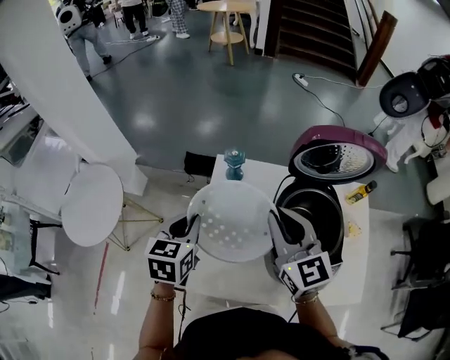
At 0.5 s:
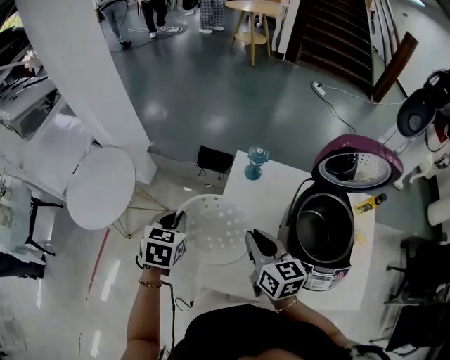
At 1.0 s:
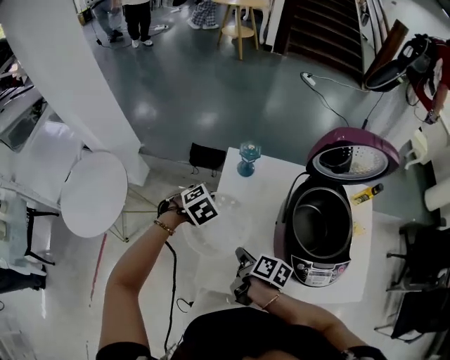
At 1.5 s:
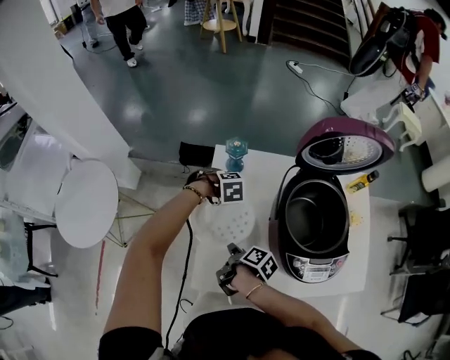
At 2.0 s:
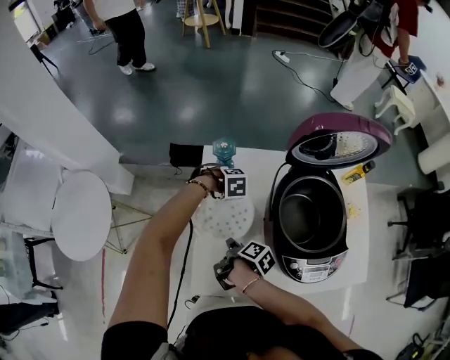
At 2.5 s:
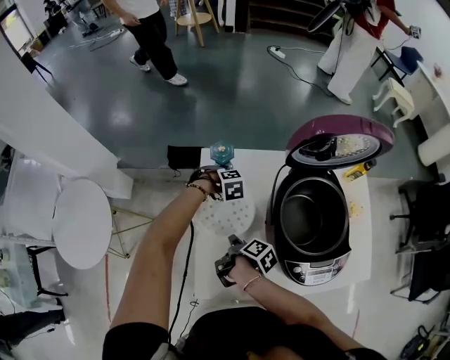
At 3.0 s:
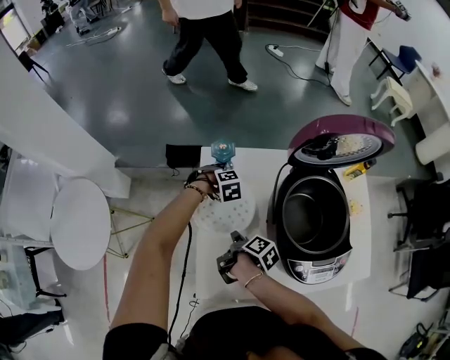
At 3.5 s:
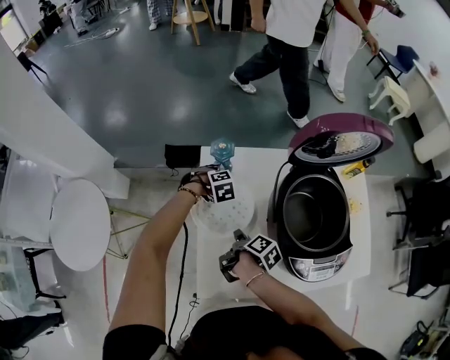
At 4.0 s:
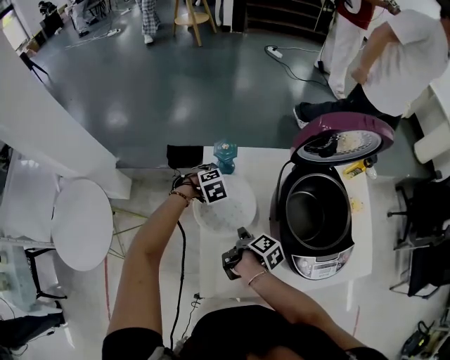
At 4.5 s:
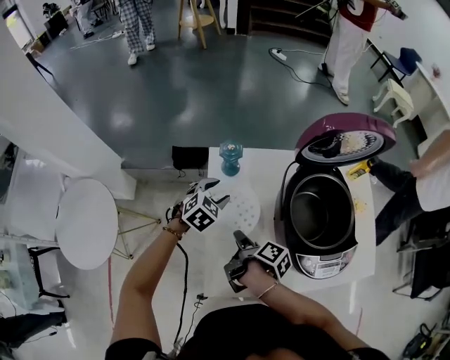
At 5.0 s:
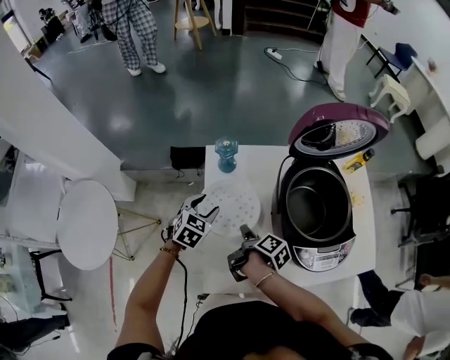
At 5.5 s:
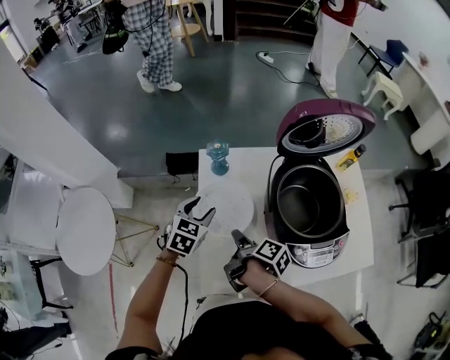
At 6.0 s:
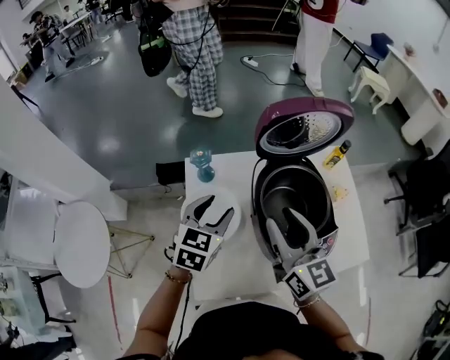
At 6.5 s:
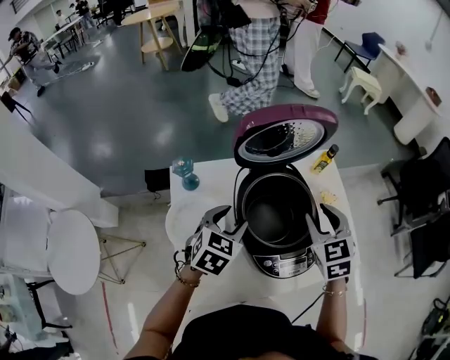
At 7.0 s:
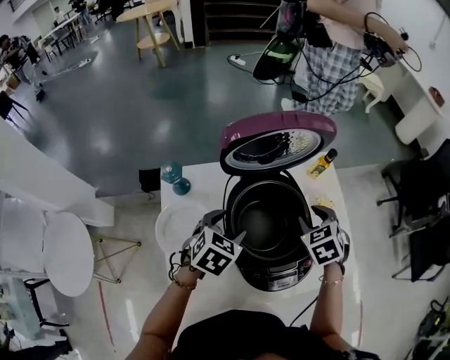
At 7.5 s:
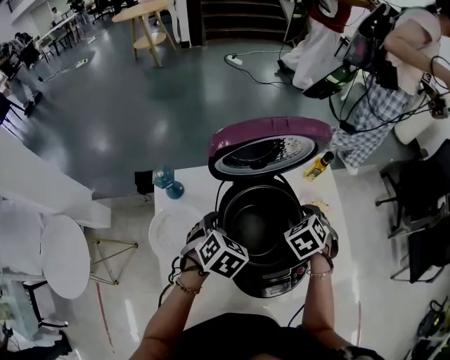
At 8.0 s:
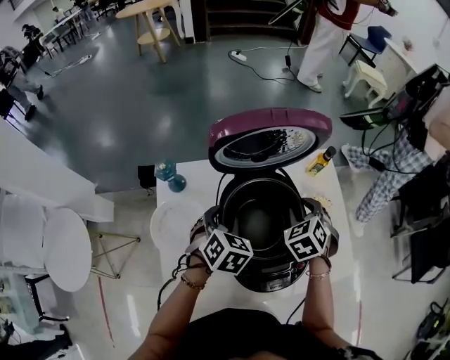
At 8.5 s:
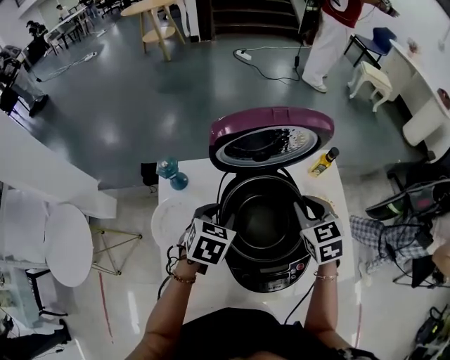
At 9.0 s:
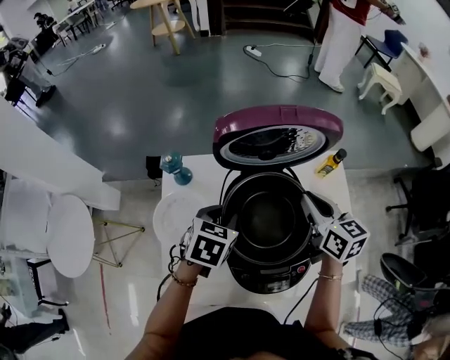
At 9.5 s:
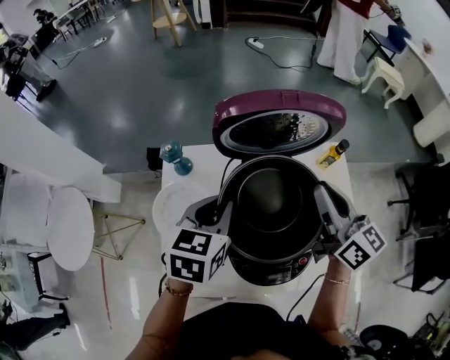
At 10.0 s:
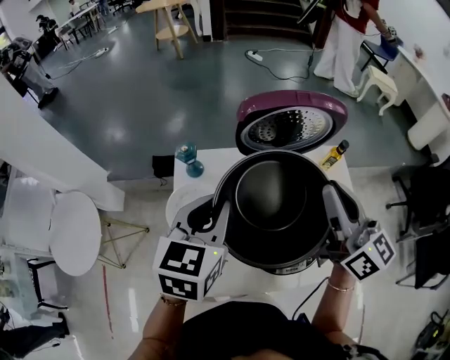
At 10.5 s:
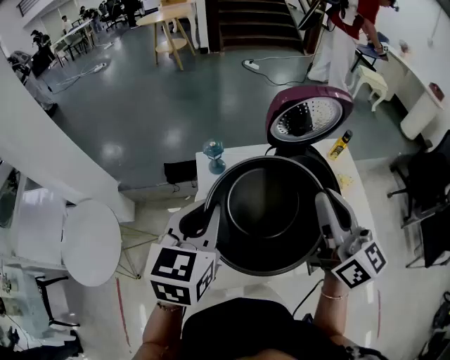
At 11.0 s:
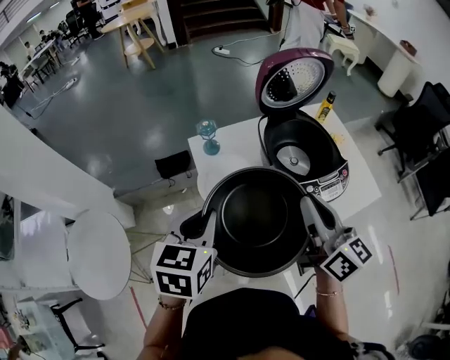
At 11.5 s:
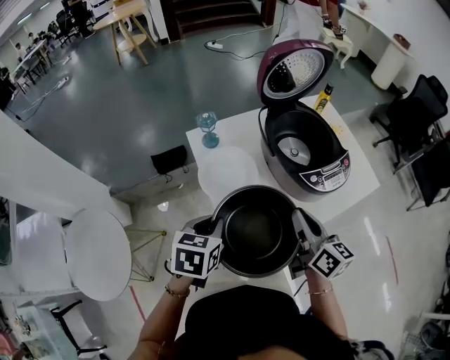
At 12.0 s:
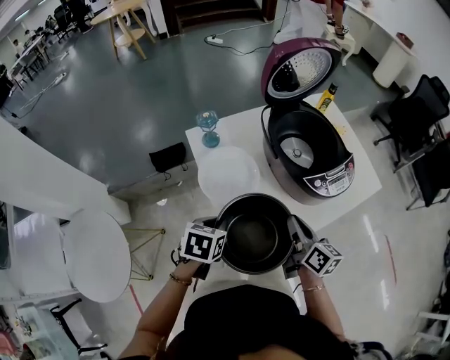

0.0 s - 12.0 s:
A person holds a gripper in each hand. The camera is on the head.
0.0 s - 2.0 s: Both grippers travel together downward, approximately 25 cm. The right gripper rolls clockwise, seen from behind, by approximately 100 degrees. Meanwhile the left gripper rotates around the line of its fingers by some 70 degrees, clockwise from behind.
2.0 s - 4.0 s: The left gripper ends up about 5 cm from where it was, and opens.
4.0 s - 6.0 s: The right gripper moves up and down over some 30 cm, changing direction 2 times, and rotates around the line of its fingers by about 70 degrees, counterclockwise from behind; the left gripper goes approximately 25 cm upward and backward, and tilts its fingers roughly 40 degrees upward.
6.0 s - 8.0 s: The left gripper moves to the right, forward and downward, some 15 cm, and turns by some 30 degrees. The right gripper moves to the right, downward and forward, roughly 30 cm, and angles its fingers downward, by approximately 50 degrees.
8.0 s - 10.0 s: The two grippers go some 20 cm upward. The right gripper angles its fingers upward, by roughly 60 degrees; the left gripper turns by about 40 degrees.
10.0 s - 12.0 s: The grippers both shift downward by roughly 25 cm. The left gripper rotates about 40 degrees, while the right gripper turns by roughly 40 degrees.

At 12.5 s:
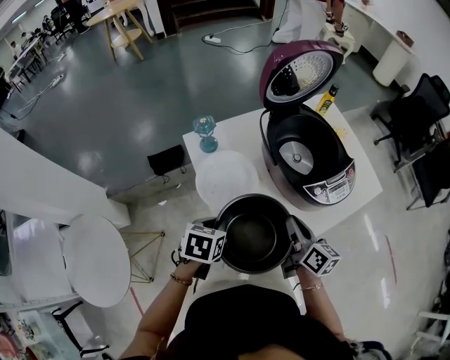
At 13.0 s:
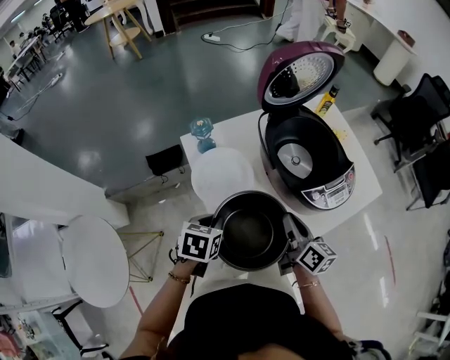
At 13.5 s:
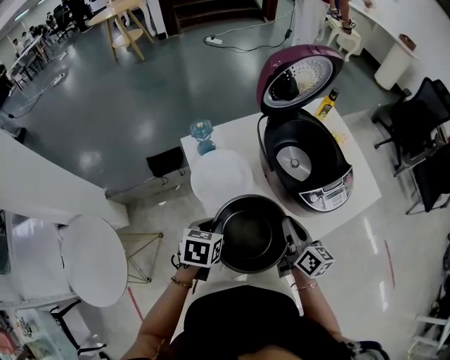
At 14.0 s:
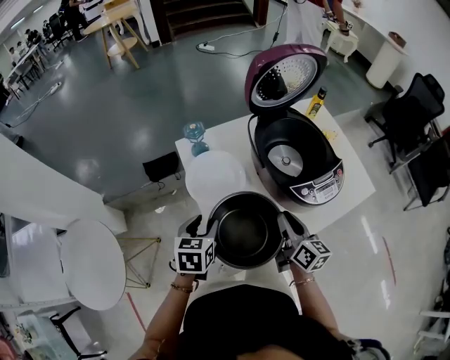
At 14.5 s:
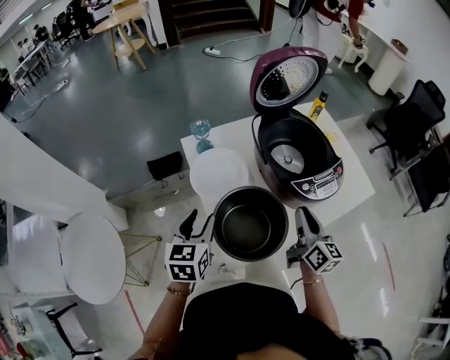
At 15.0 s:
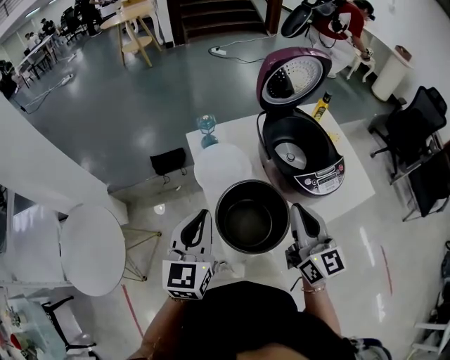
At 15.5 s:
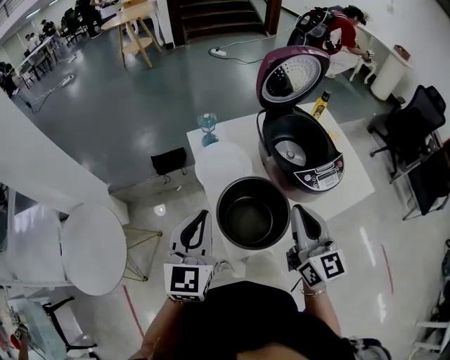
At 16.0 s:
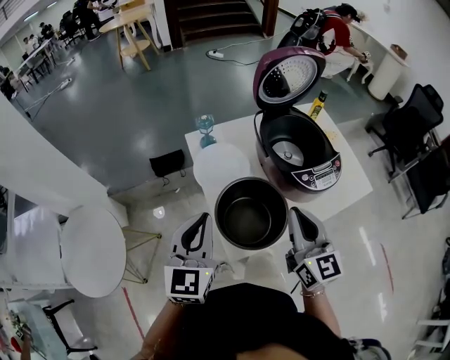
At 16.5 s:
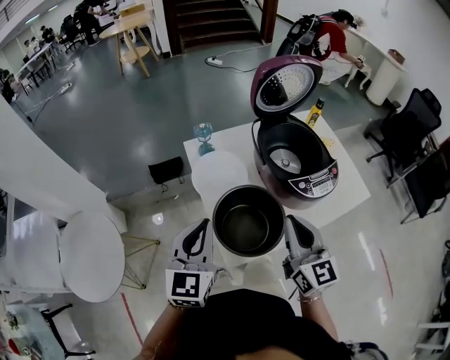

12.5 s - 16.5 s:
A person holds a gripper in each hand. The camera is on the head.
12.5 s - 14.5 s: The right gripper goes about 5 cm to the right; the left gripper is displaced upward by roughly 10 cm, and turns by about 30 degrees.
14.5 s - 16.5 s: The left gripper travels upward and backward by some 10 cm, rotates approximately 20 degrees, and closes. The right gripper is displaced upward, to the left and backward by approximately 15 cm, and swivels approximately 30 degrees.

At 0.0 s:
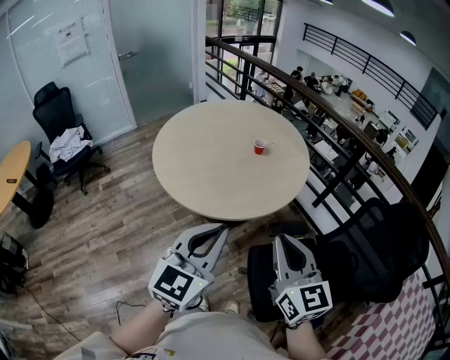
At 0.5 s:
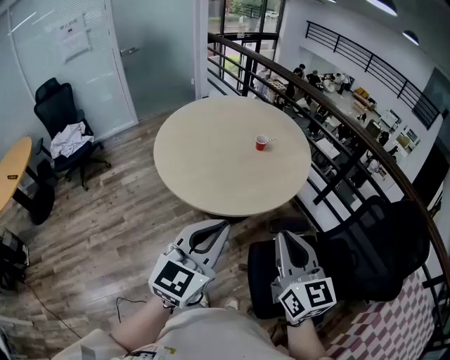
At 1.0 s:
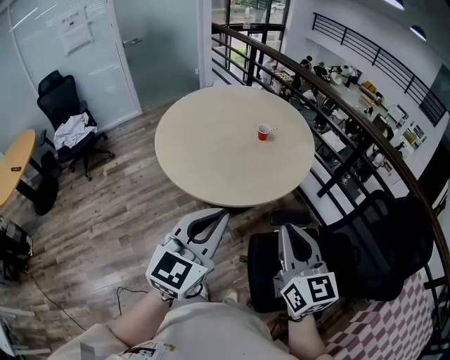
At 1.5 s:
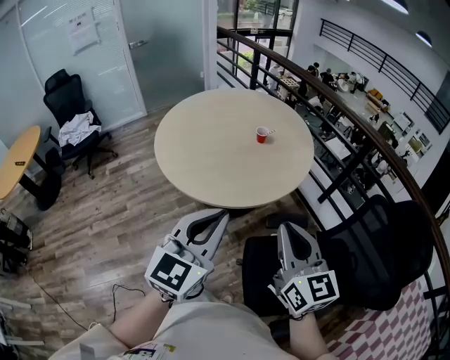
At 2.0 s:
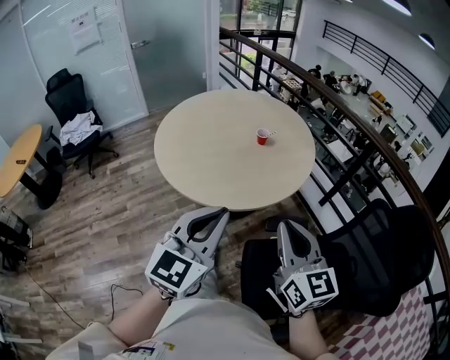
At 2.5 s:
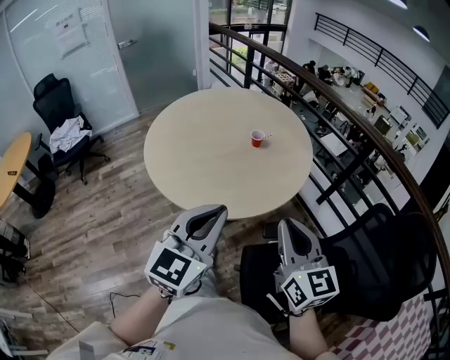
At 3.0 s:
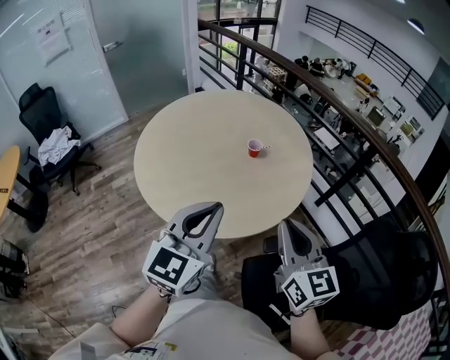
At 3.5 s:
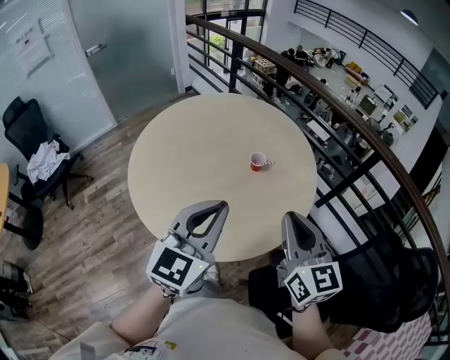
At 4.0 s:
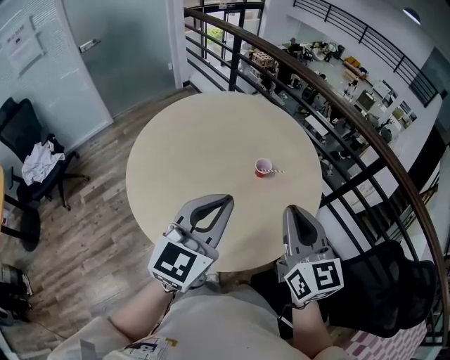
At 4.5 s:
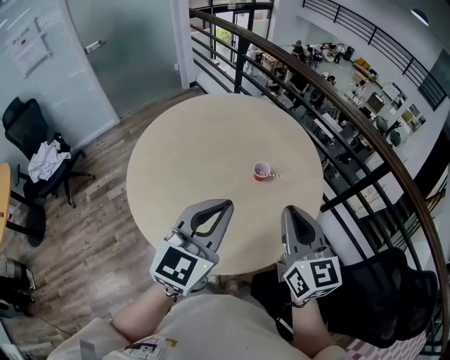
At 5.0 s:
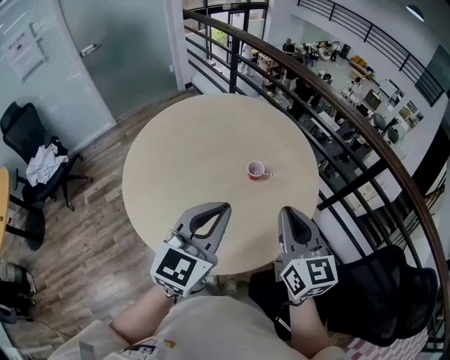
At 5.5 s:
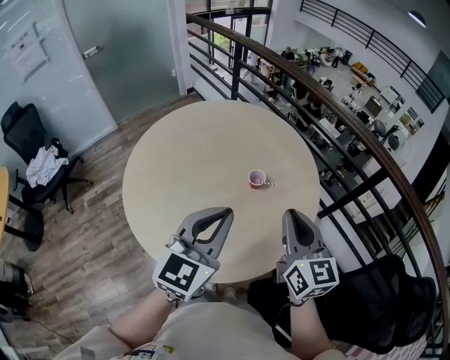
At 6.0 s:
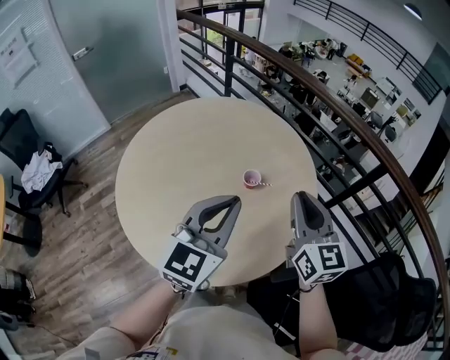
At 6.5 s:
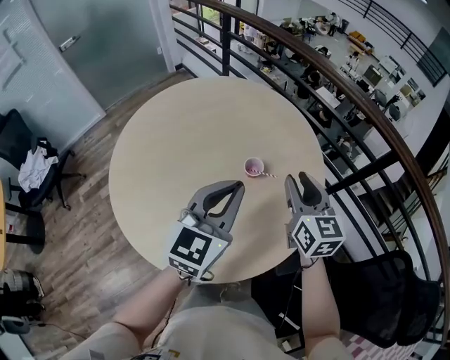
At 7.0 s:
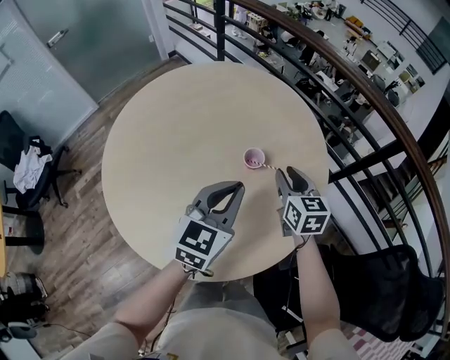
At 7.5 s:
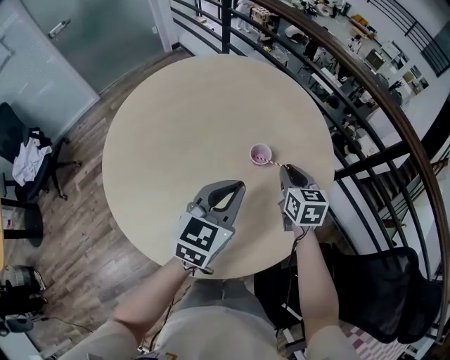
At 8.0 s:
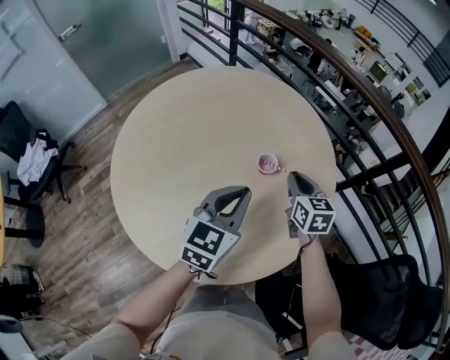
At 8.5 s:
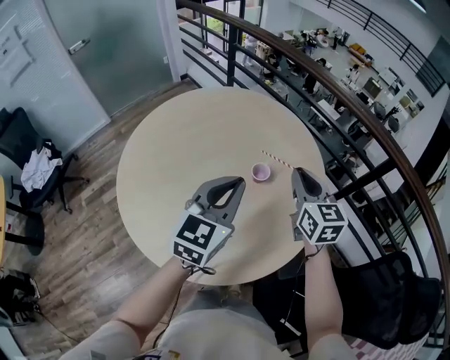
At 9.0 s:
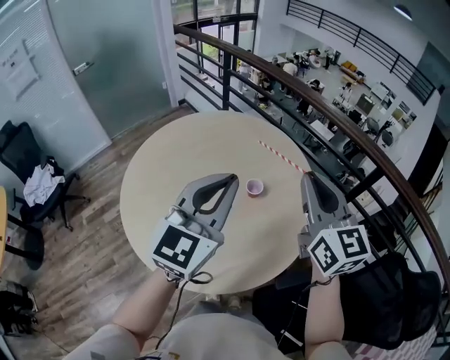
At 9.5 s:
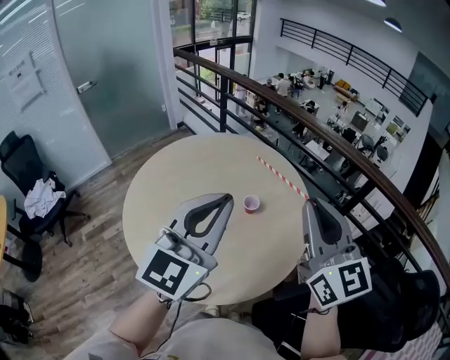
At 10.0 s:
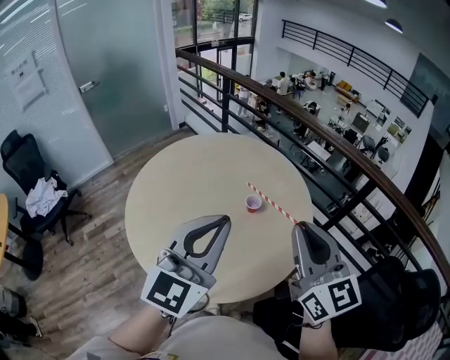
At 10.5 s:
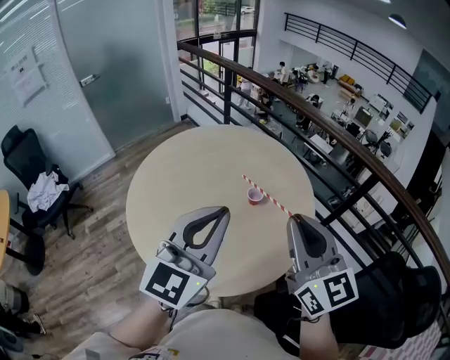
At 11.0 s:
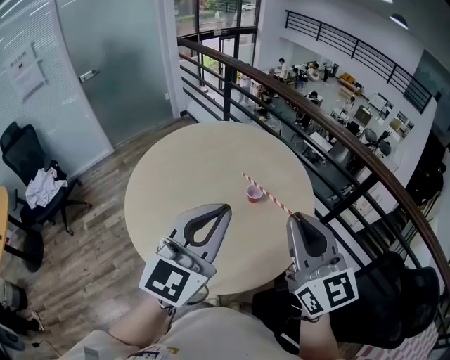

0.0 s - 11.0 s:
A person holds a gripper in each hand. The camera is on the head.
0.0 s - 2.0 s: Both grippers travel together to the right, roughly 5 cm.
2.0 s - 3.5 s: Both grippers move forward, roughly 25 cm.
3.5 s - 5.5 s: The grippers both shift forward by about 10 cm.
5.5 s - 7.5 s: Both grippers move downward and forward, approximately 25 cm. The right gripper rotates some 30 degrees.
7.5 s - 9.0 s: Both grippers move upward, approximately 30 cm. The right gripper tilts its fingers approximately 30 degrees upward. Meanwhile the left gripper rotates approximately 30 degrees.
9.0 s - 11.0 s: Both grippers travel together backward, approximately 10 cm.
